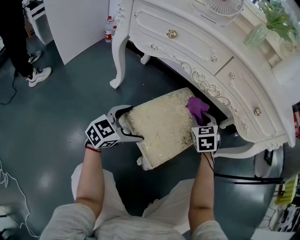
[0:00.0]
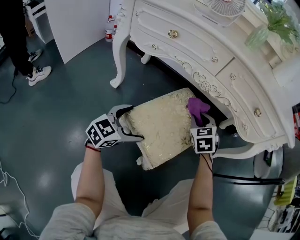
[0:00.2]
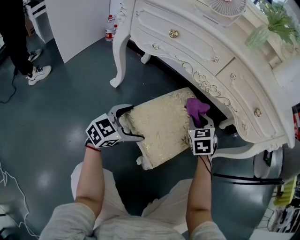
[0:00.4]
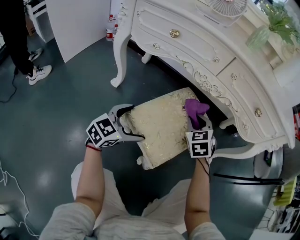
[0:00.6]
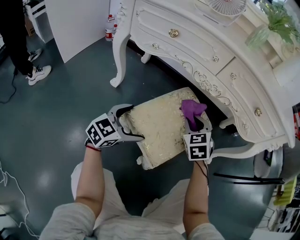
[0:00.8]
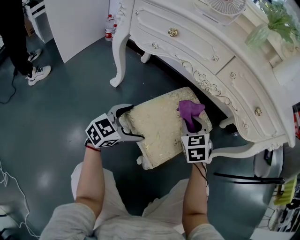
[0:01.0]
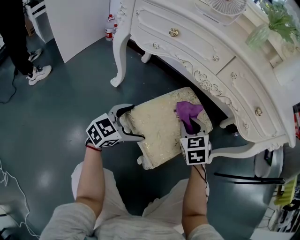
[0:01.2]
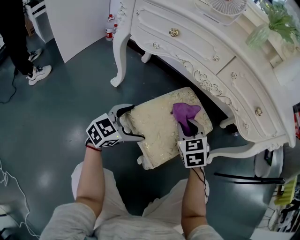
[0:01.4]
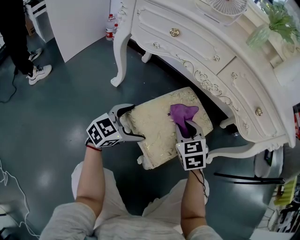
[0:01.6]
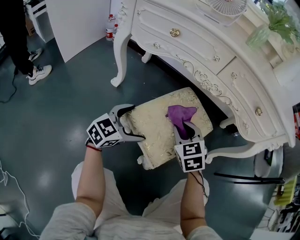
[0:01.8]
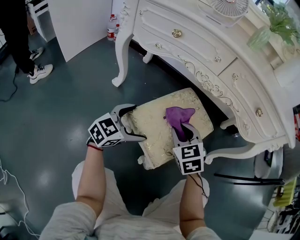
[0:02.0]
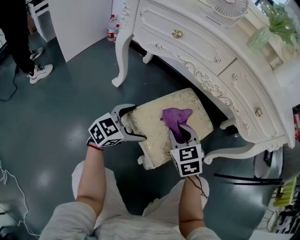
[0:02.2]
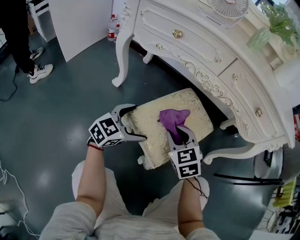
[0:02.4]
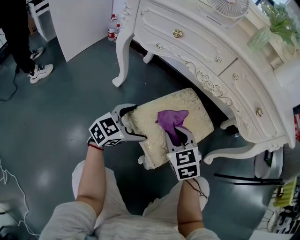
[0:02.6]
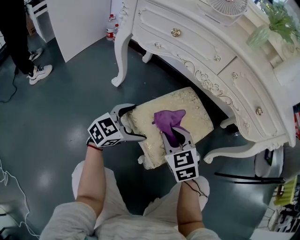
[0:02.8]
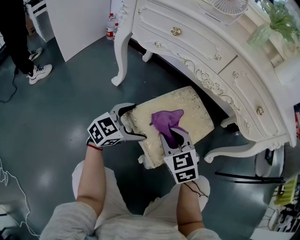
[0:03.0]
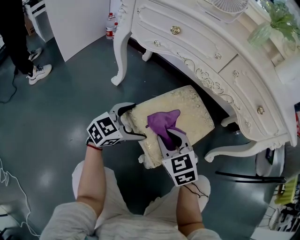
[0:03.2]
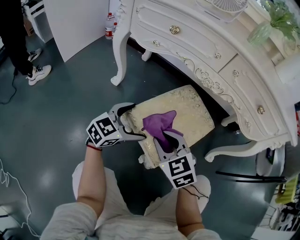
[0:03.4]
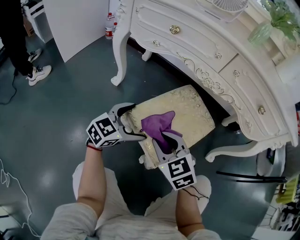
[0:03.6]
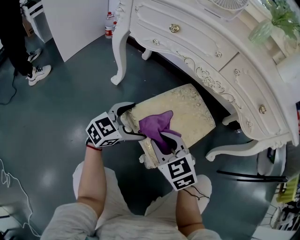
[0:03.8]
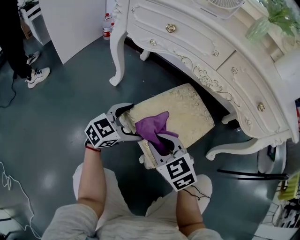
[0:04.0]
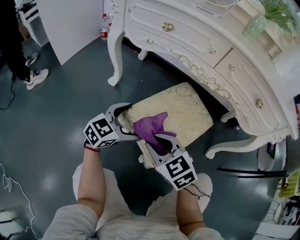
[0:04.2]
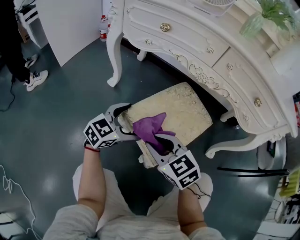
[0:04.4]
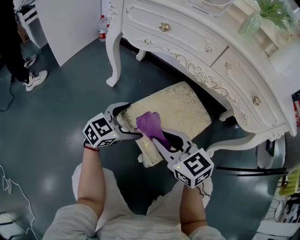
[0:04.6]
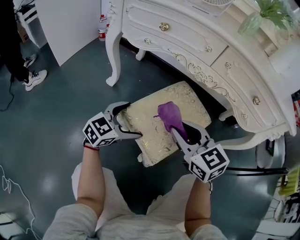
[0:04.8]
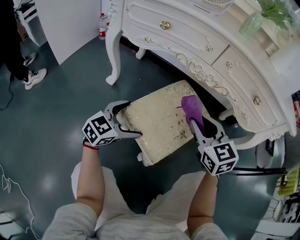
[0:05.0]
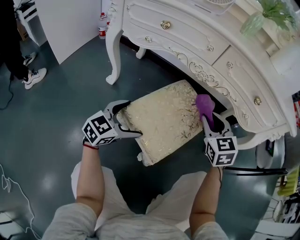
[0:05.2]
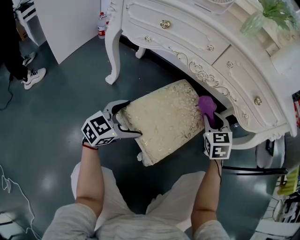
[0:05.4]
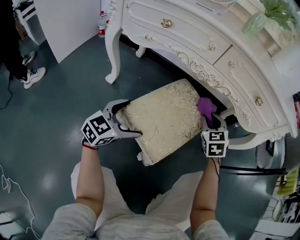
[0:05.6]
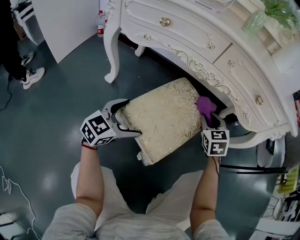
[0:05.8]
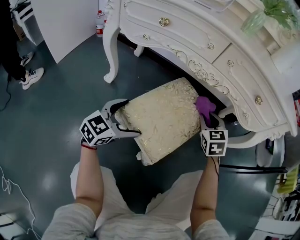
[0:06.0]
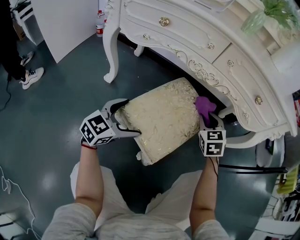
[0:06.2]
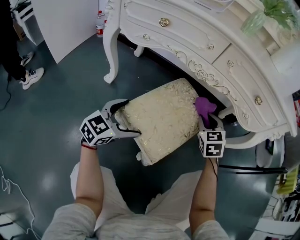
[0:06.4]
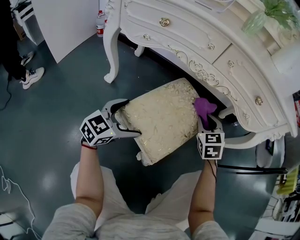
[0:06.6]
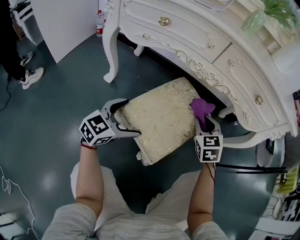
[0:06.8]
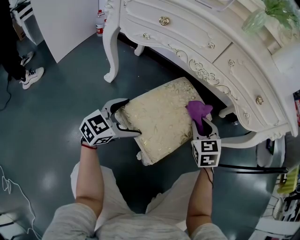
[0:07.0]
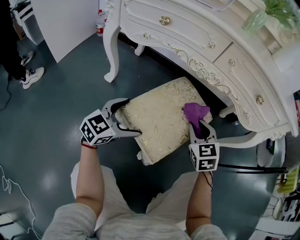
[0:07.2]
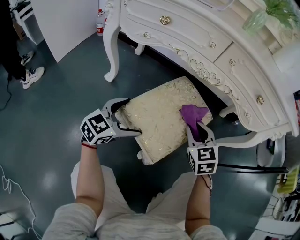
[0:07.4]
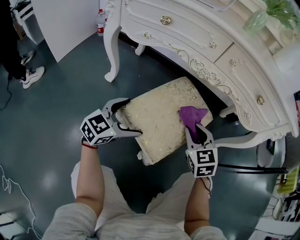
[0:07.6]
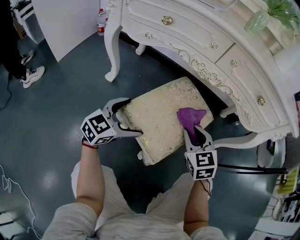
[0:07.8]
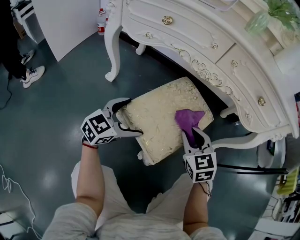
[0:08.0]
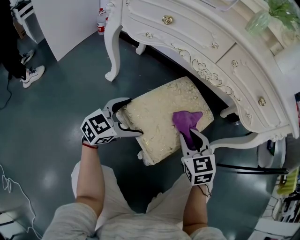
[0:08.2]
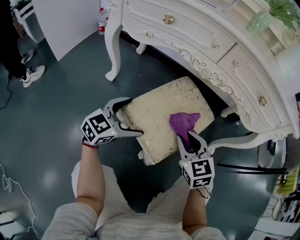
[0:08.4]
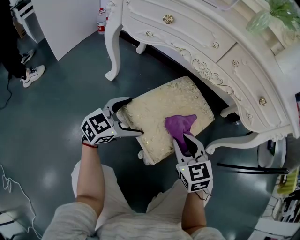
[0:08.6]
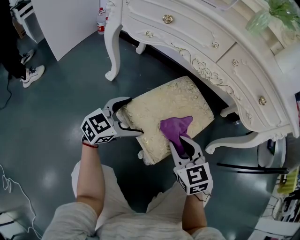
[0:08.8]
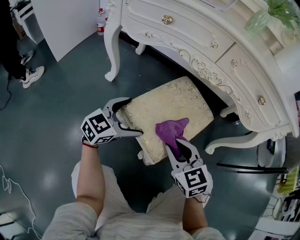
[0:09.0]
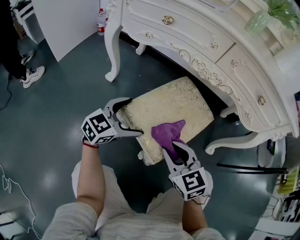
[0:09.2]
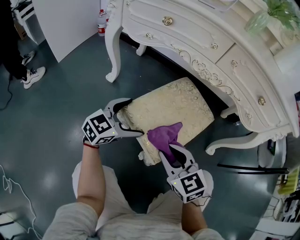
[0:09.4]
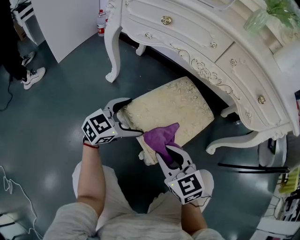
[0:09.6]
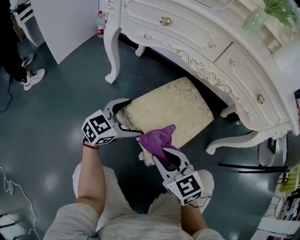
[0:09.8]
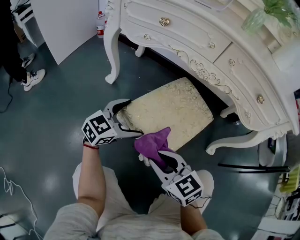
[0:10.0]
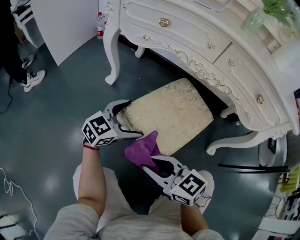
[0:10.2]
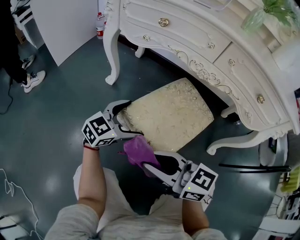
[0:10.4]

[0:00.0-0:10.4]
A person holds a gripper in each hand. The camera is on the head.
0:00.0 to 0:01.4: The right gripper moves backward, about 10 cm.
0:01.4 to 0:03.0: The right gripper heads backward, covering approximately 10 cm.
0:03.0 to 0:04.4: The right gripper travels backward by approximately 5 cm.
0:04.4 to 0:06.0: The right gripper goes upward and returns, approximately 5 cm each way, and turns by about 40 degrees.
0:06.0 to 0:07.4: The right gripper is displaced backward by roughly 10 cm.
0:07.4 to 0:09.0: The right gripper shifts some 10 cm backward and to the left.
0:09.0 to 0:10.4: The right gripper heads to the left, backward and upward, covering approximately 15 cm, and swivels approximately 40 degrees.

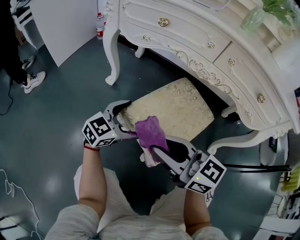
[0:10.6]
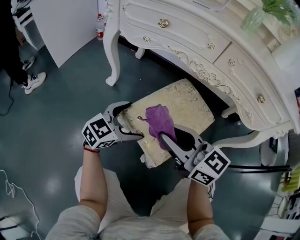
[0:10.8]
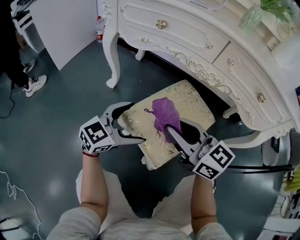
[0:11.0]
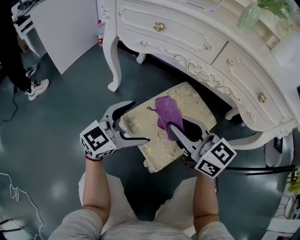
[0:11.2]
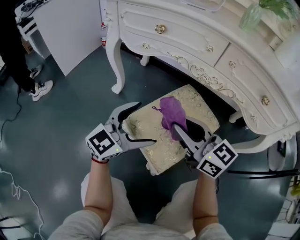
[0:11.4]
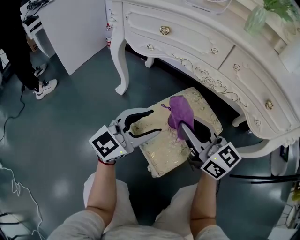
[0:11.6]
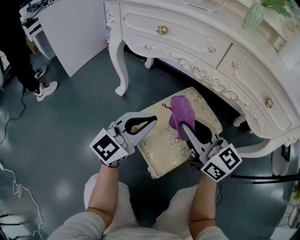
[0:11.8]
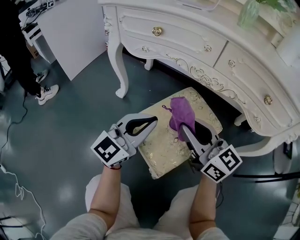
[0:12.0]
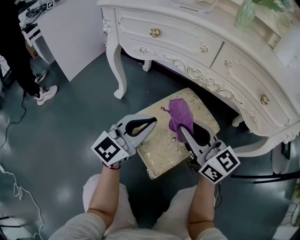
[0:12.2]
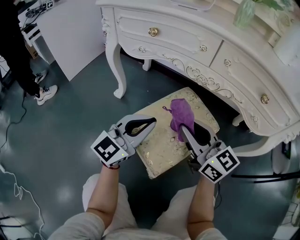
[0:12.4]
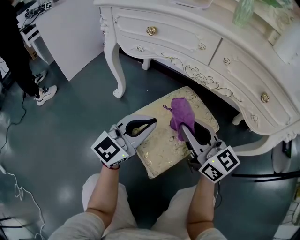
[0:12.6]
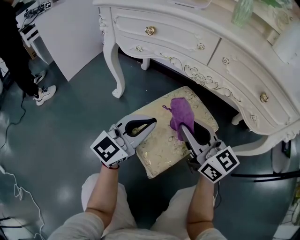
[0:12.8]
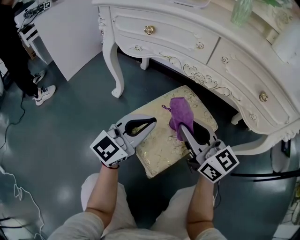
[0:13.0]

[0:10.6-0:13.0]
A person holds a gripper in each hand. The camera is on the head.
0:10.6 to 0:11.8: The right gripper moves forward and to the right, approximately 10 cm; the left gripper is displaced upward by roughly 10 cm, turns by some 20 degrees, and closes up.
0:11.8 to 0:13.0: The grippers stay close to where they were, moving slightly.

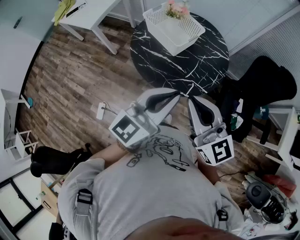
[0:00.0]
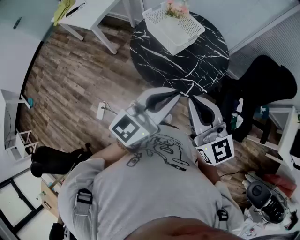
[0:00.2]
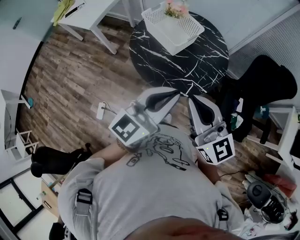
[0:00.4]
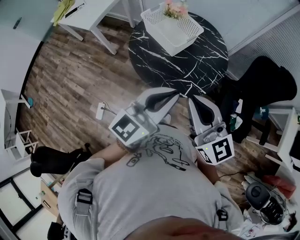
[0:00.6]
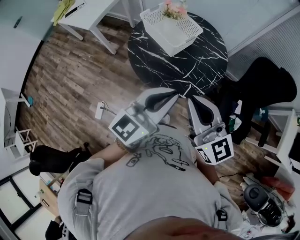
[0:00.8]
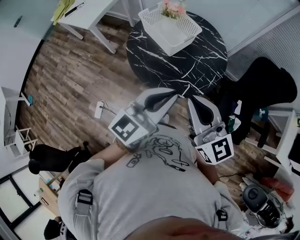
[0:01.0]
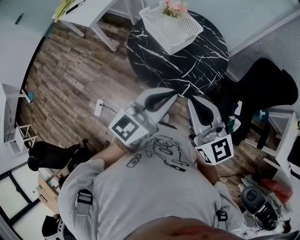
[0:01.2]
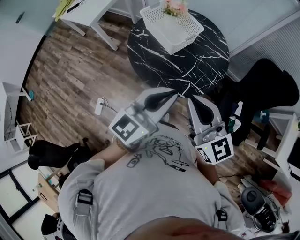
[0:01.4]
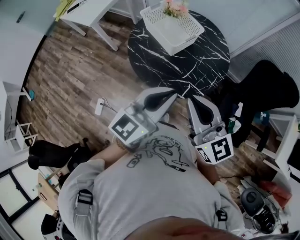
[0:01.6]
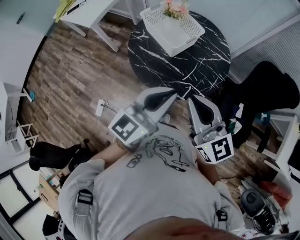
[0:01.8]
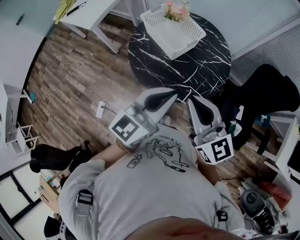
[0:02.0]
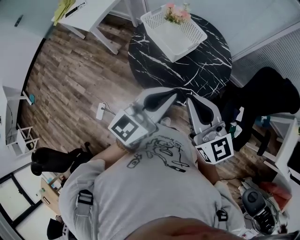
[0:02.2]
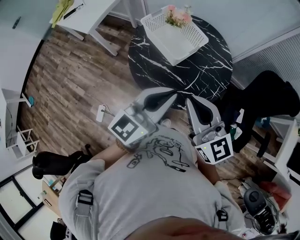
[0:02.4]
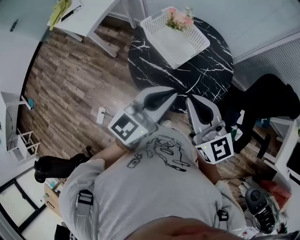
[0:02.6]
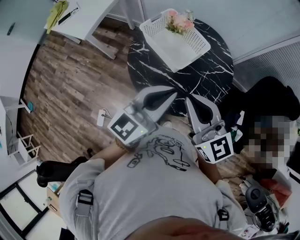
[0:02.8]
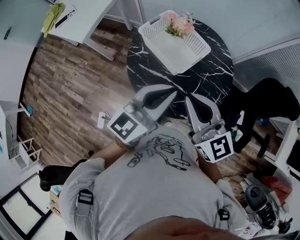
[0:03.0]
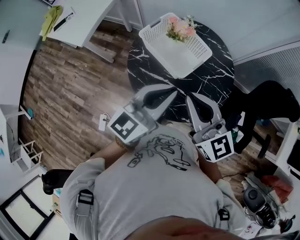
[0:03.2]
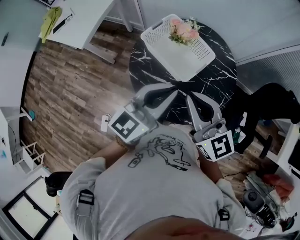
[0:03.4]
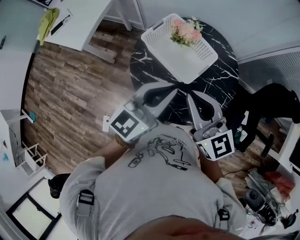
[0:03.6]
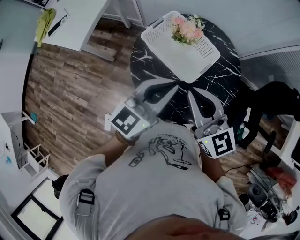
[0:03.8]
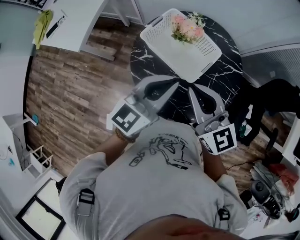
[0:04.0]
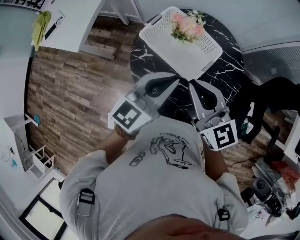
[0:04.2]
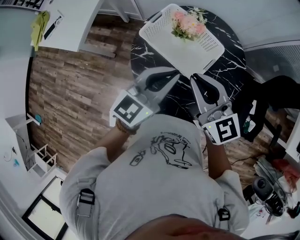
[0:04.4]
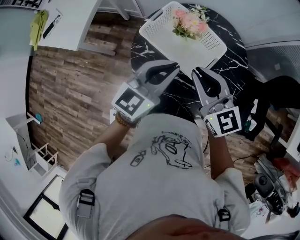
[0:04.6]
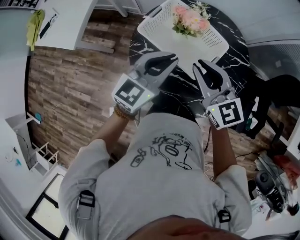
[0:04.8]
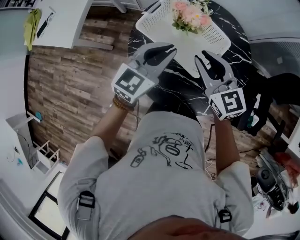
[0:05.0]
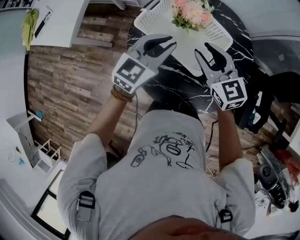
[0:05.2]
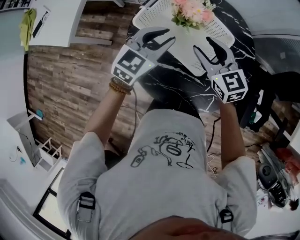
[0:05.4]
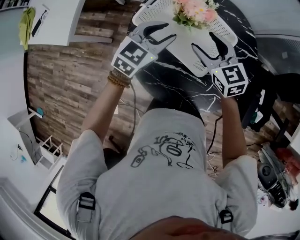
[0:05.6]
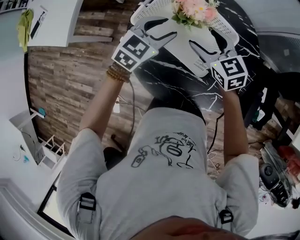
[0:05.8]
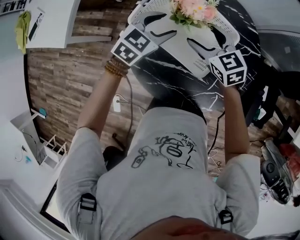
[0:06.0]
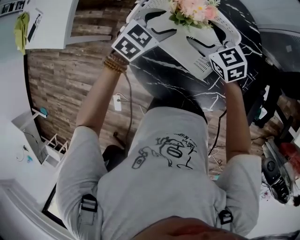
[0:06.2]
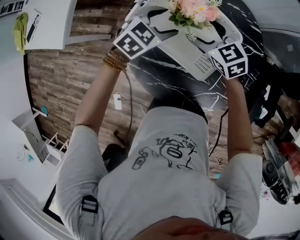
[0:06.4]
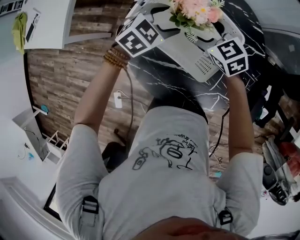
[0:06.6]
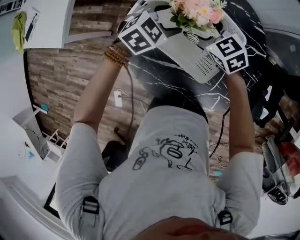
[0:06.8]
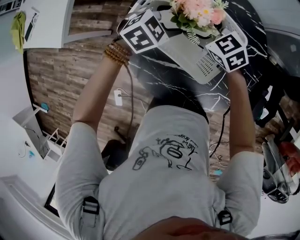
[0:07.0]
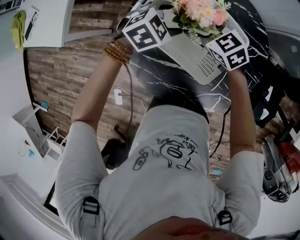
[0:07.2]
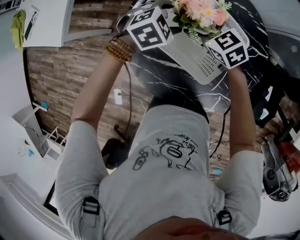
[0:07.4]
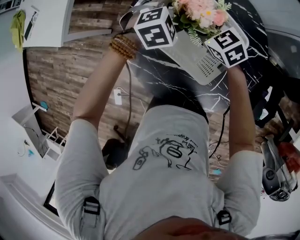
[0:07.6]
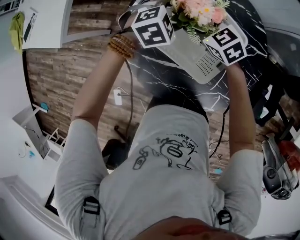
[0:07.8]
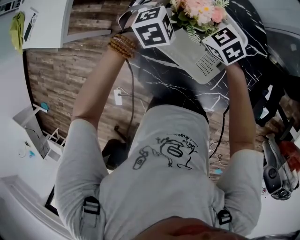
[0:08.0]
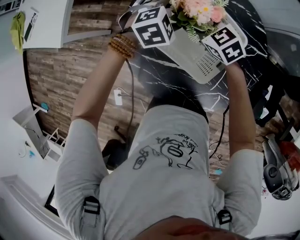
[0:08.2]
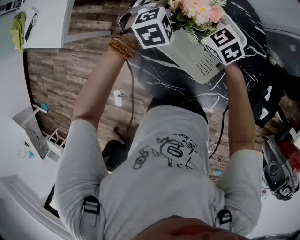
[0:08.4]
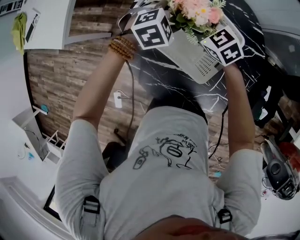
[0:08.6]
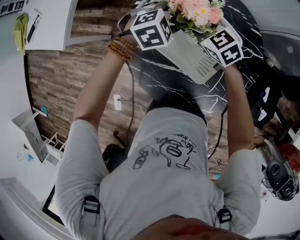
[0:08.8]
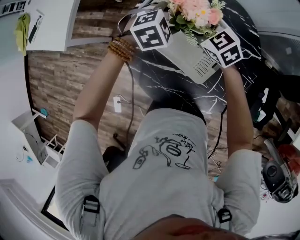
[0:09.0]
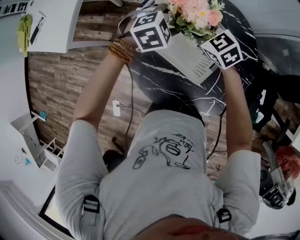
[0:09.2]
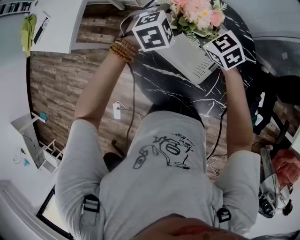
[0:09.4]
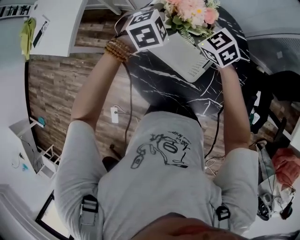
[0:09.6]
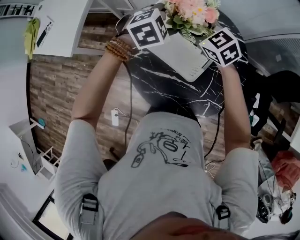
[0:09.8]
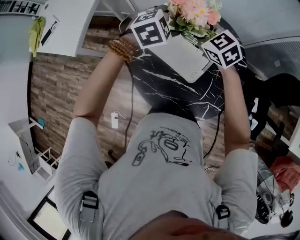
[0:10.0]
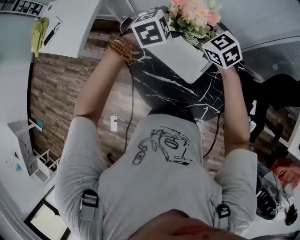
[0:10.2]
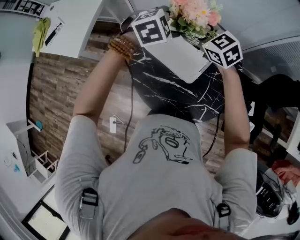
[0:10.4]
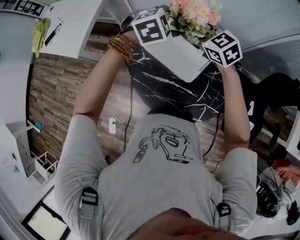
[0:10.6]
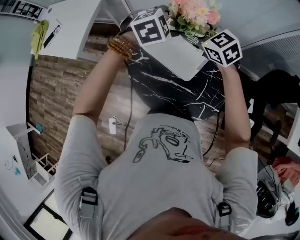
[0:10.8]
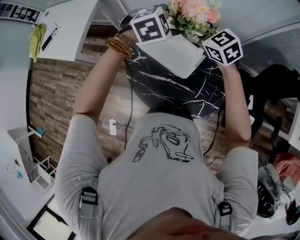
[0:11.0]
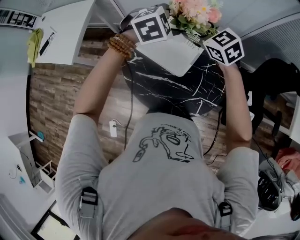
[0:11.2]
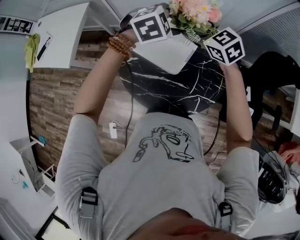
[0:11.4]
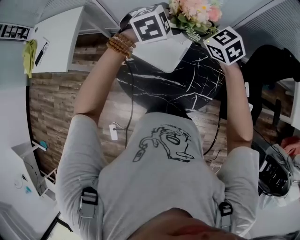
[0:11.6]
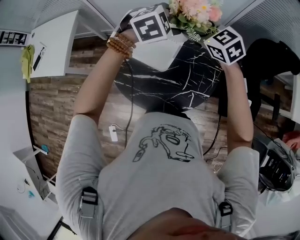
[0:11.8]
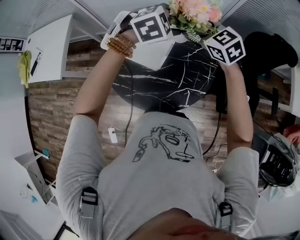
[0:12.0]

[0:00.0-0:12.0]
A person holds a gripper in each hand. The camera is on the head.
0:00.0 to 0:01.6: The left gripper changes place by approximately 5 cm. Meanwhile the right gripper goes some 5 cm to the right.
0:01.6 to 0:03.0: Both grippers travel together forward and to the left, some 25 cm.
0:03.0 to 0:04.4: The grippers both shift forward and downward by roughly 20 cm.
0:04.4 to 0:06.0: The two grippers go some 30 cm downward and forward. The left gripper swivels roughly 30 degrees, and opens its fingers. Meanwhile the right gripper swivels roughly 20 degrees, and opens up.
0:06.0 to 0:07.6: The right gripper moves downward and forward, roughly 10 cm; the left gripper heads downward, covering approximately 5 cm, and changes its angle by roughly 30 degrees.
0:07.6 to 0:09.0: The grippers make only small movements.
0:09.0 to 0:10.4: Both grippers travel together upward, about 20 cm.
0:10.4 to 0:12.0: Both grippers travel together to the right, about 20 cm.
